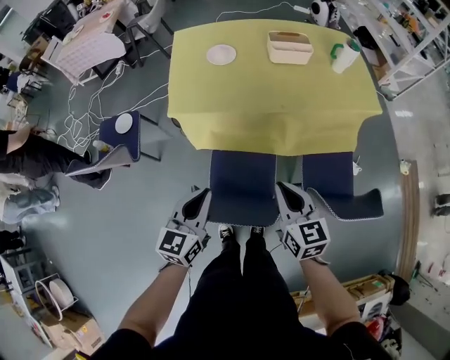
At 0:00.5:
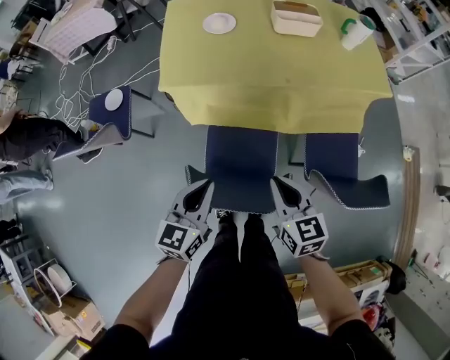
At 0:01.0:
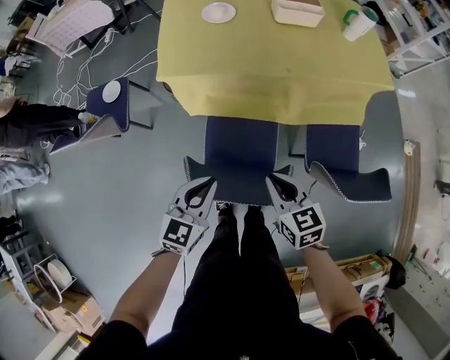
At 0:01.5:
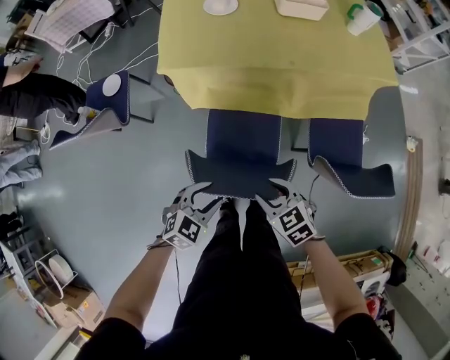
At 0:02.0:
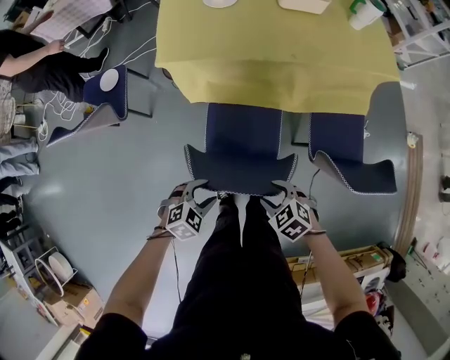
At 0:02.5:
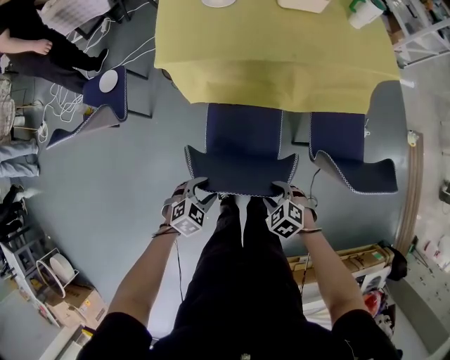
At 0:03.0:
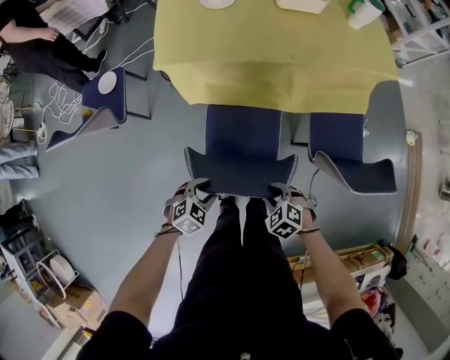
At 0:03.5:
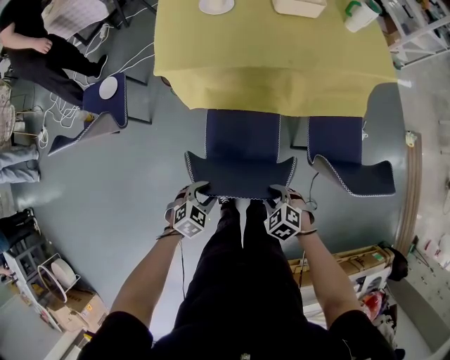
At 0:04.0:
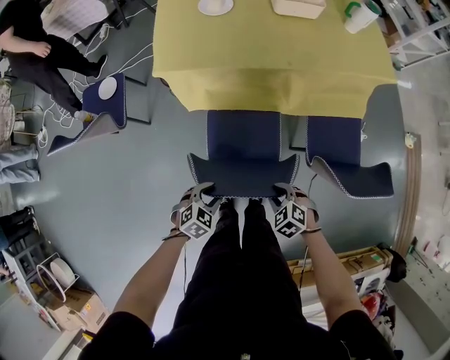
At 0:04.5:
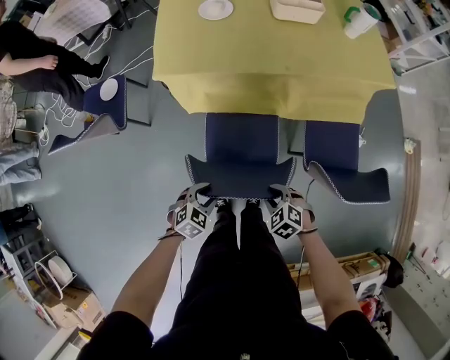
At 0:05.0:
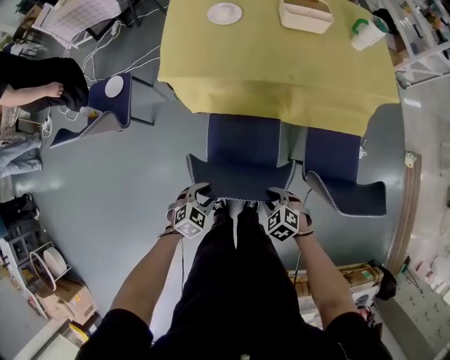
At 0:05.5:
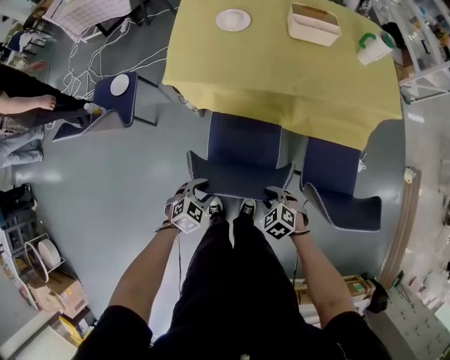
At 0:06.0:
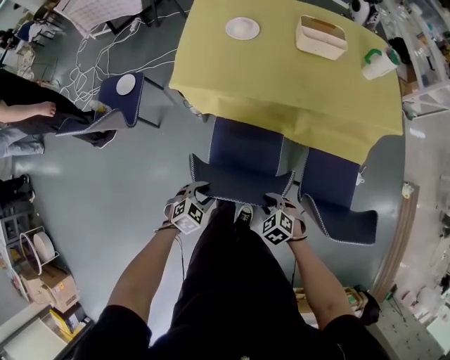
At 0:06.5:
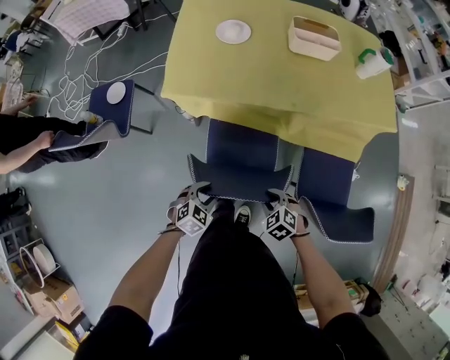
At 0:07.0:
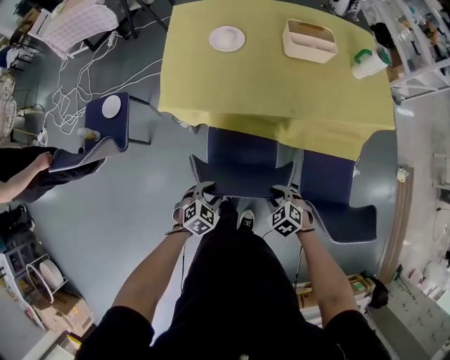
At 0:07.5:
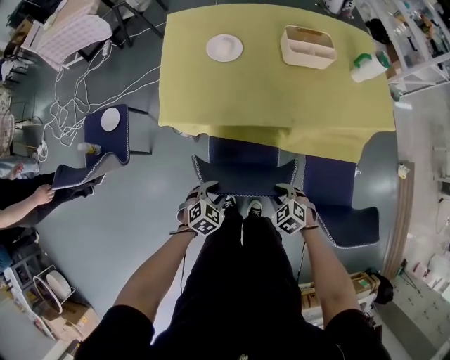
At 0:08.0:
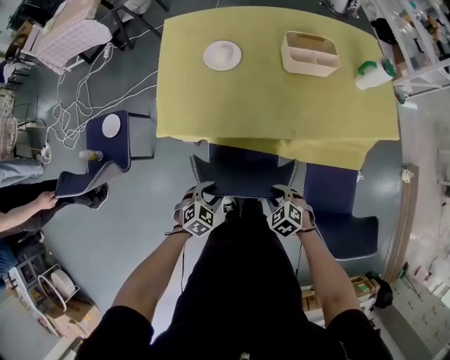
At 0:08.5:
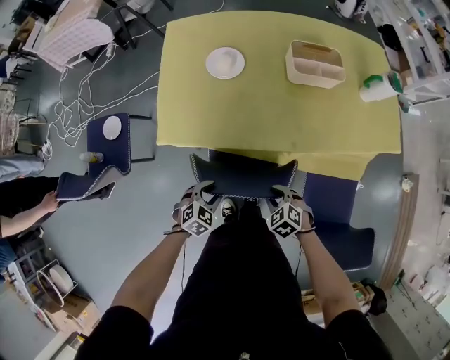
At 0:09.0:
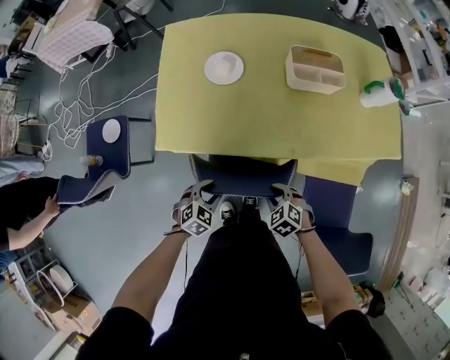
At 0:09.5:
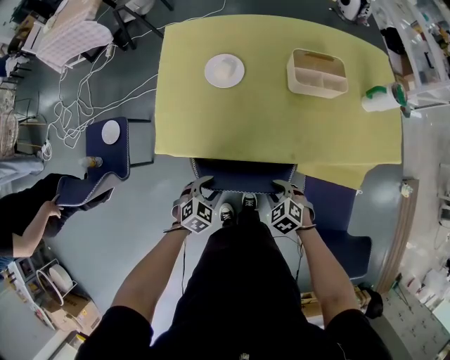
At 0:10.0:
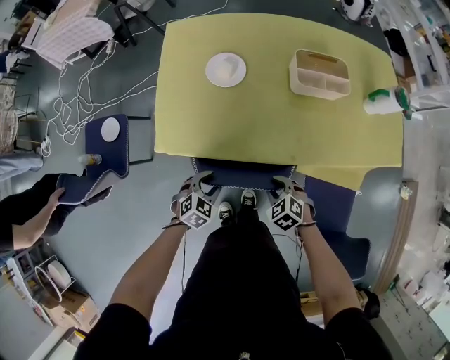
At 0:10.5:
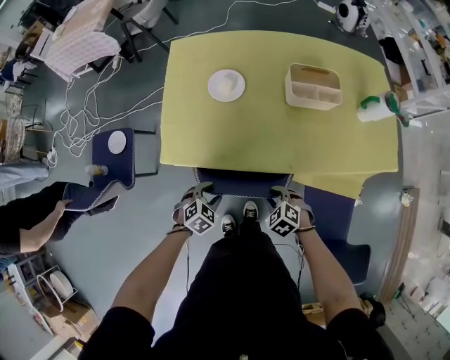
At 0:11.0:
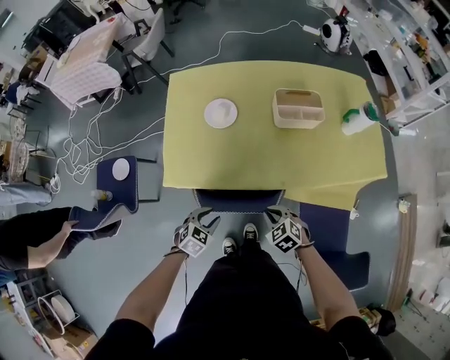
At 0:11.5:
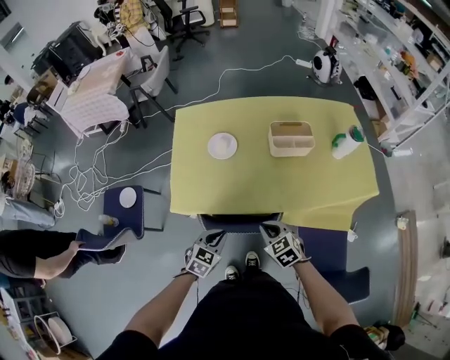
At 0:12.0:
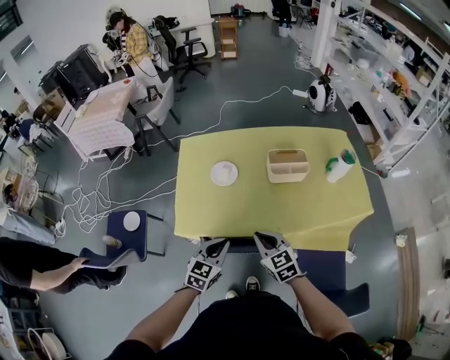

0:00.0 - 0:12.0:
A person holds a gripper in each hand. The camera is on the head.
0:00.0 - 0:02.0: Both grippers move downward, roughly 25 cm. The right gripper angles its fingers downward, by approximately 40 degrees, and opens up; the left gripper angles its fingers downward, by about 40 degrees, and opens.
0:02.0 - 0:04.0: The right gripper moves approximately 5 cm.
0:04.0 - 0:06.0: The two grippers go roughly 5 cm forward.
0:06.0 - 0:08.0: Both grippers travel together forward, about 20 cm.
0:08.0 - 0:10.0: The two grippers go some 15 cm forward.
0:10.0 - 0:12.0: Both grippers travel together upward, about 25 cm. The right gripper tilts its fingers approximately 40 degrees upward, and closes. Meanwhile the left gripper swivels approximately 30 degrees, and closes up.

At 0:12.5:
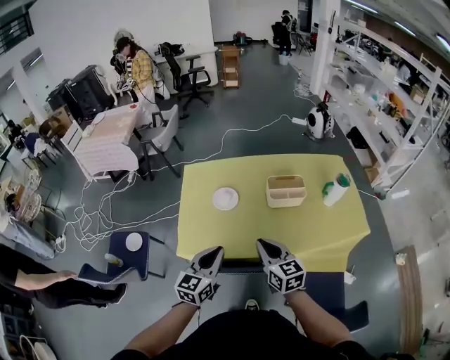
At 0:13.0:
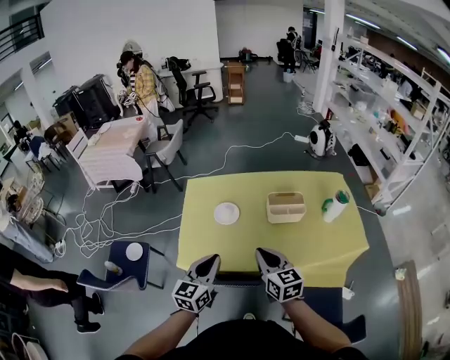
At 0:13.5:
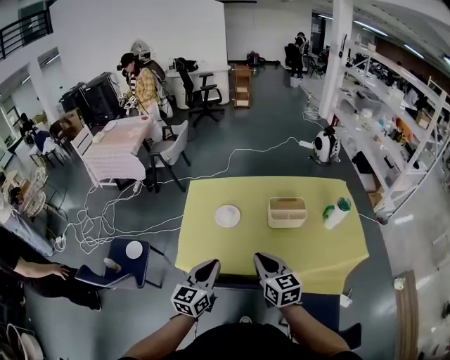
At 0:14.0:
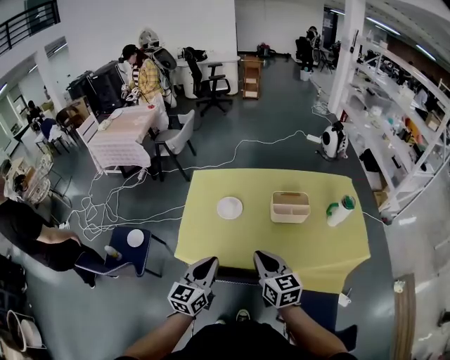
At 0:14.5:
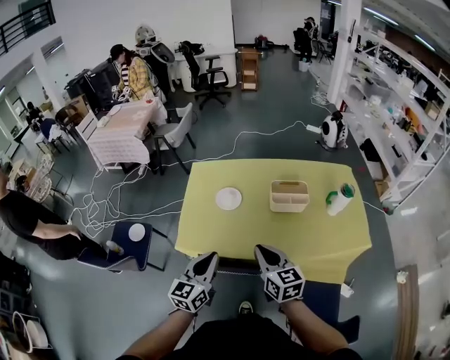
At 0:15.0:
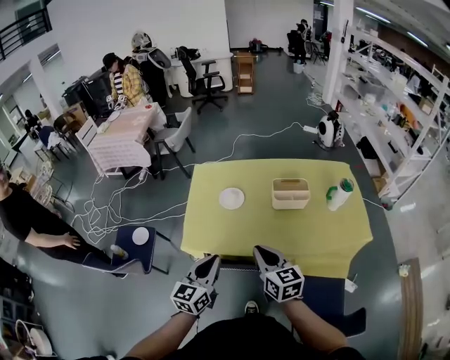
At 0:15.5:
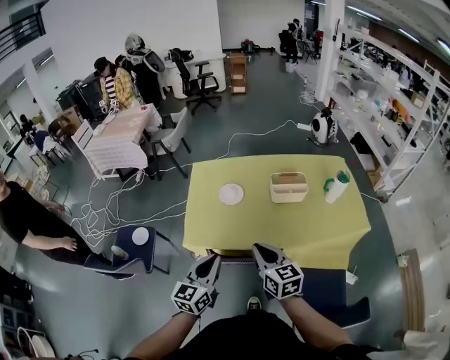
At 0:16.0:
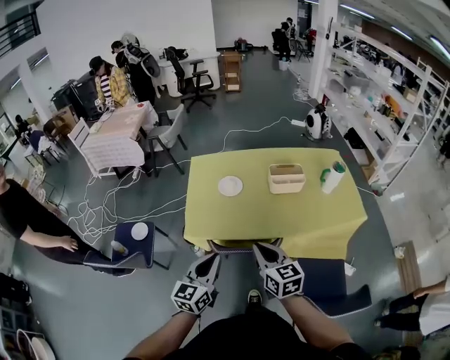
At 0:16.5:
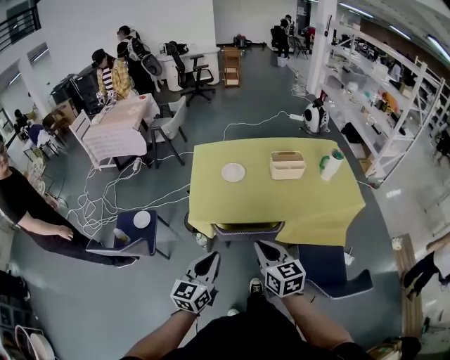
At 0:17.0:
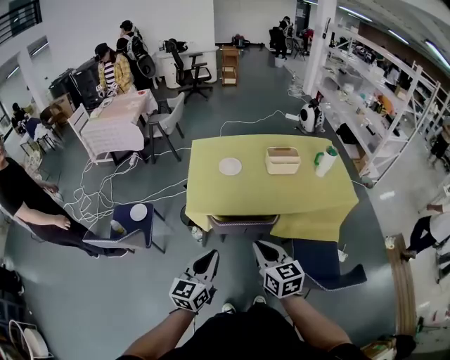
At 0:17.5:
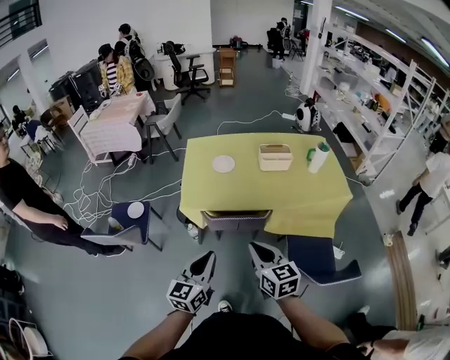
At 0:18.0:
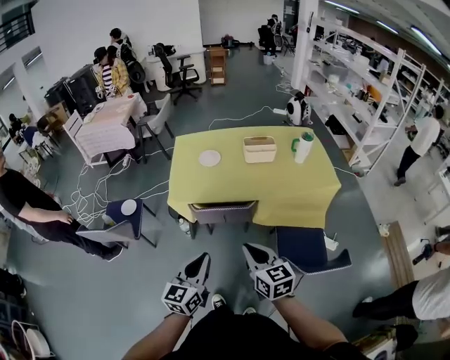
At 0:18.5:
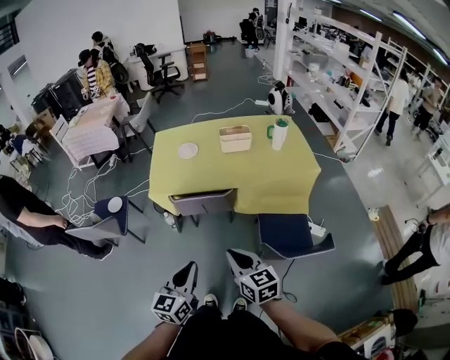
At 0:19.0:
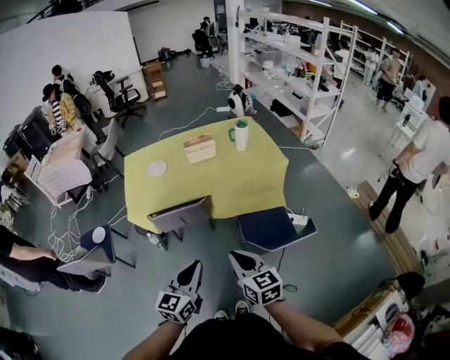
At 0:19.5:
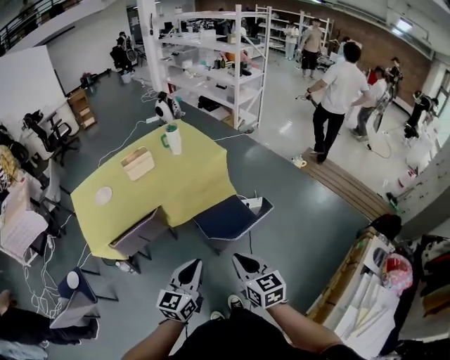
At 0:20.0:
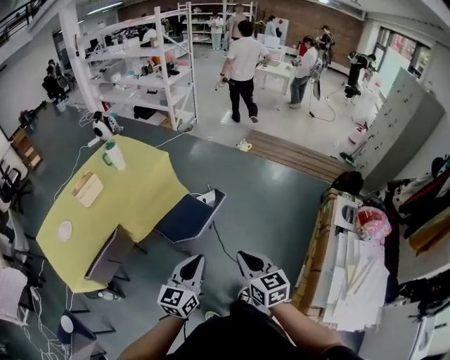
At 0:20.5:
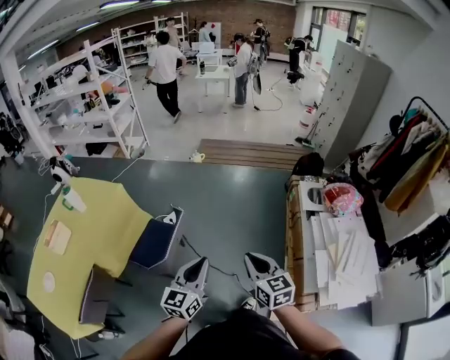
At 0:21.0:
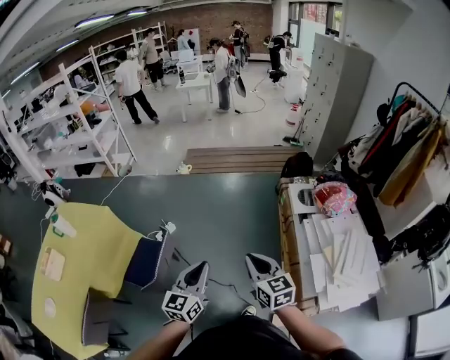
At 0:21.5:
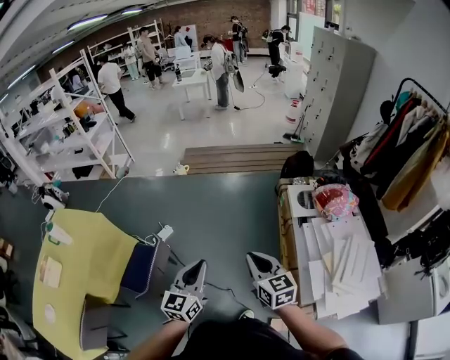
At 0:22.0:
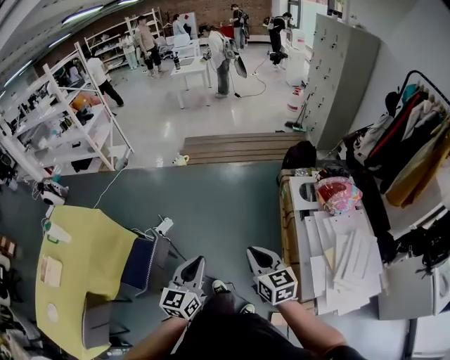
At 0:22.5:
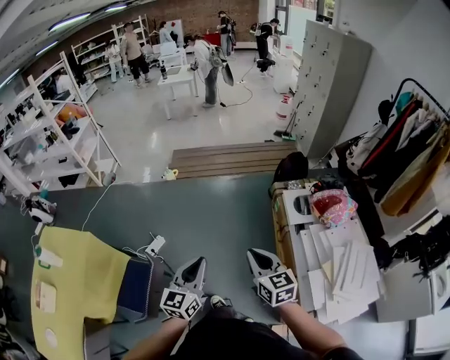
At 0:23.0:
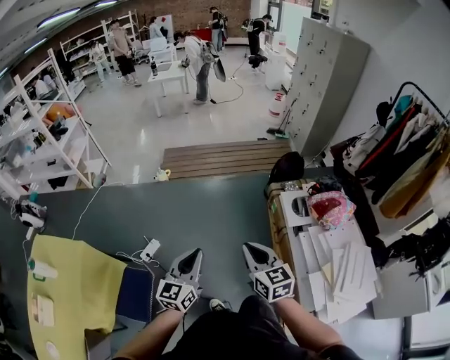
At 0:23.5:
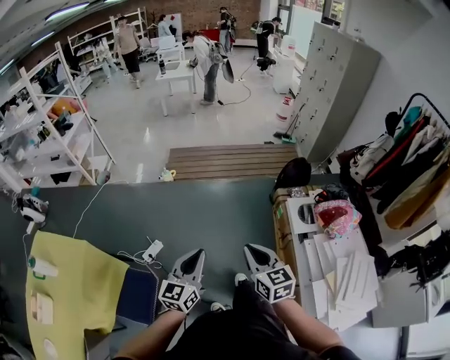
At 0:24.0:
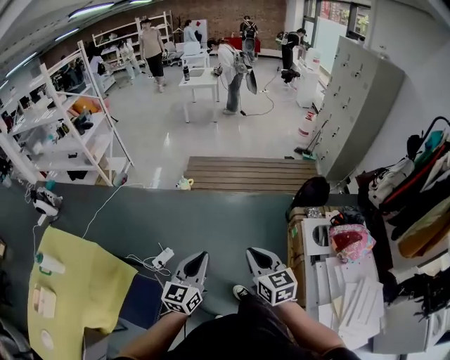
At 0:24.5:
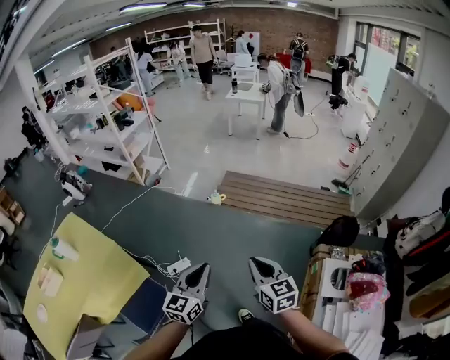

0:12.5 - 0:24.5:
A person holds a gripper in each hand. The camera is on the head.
0:12.5 - 0:14.5: The grippers make only small movements.
0:14.5 - 0:16.5: The grippers both shift backward and to the left by about 25 cm.
0:16.5 - 0:18.5: The grippers both shift backward and to the right by roughly 30 cm.
0:18.5 - 0:20.5: The two grippers travel together, roughly 40 cm. The left gripper rotates about 80 degrees, while the right gripper changes its angle by approximately 80 degrees.
0:20.5 - 0:22.5: The two grippers go about 30 cm forward and to the right.
0:22.5 - 0:24.5: The two grippers go roughly 30 cm forward and to the left. The right gripper changes its angle by roughly 20 degrees.

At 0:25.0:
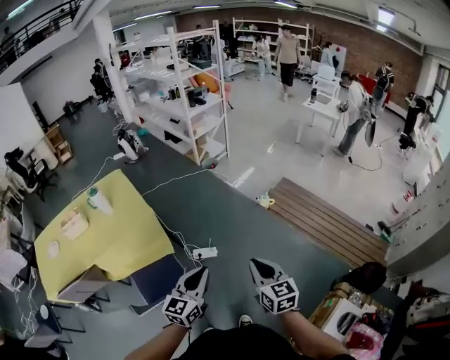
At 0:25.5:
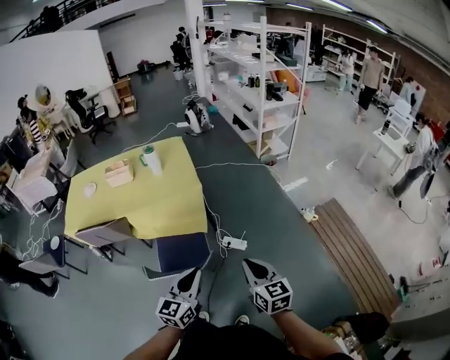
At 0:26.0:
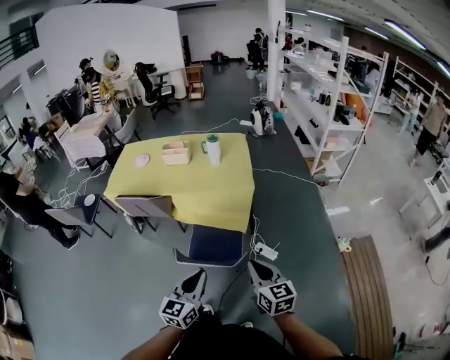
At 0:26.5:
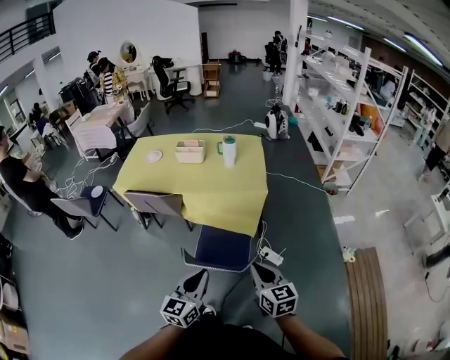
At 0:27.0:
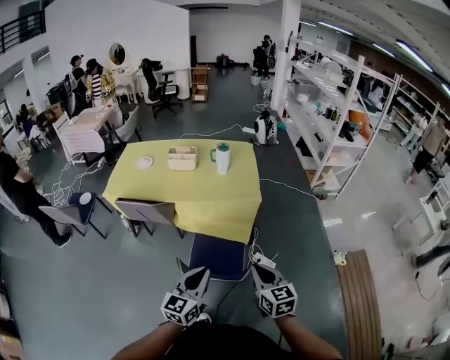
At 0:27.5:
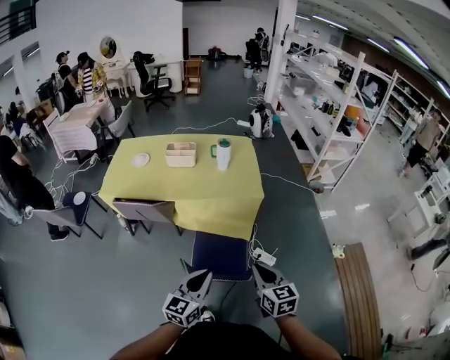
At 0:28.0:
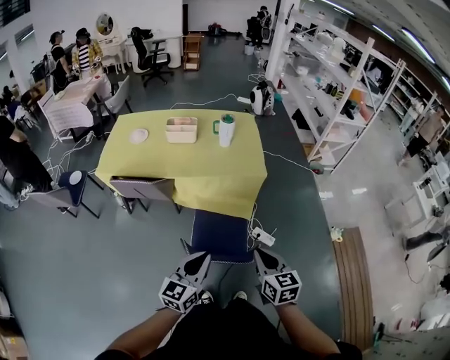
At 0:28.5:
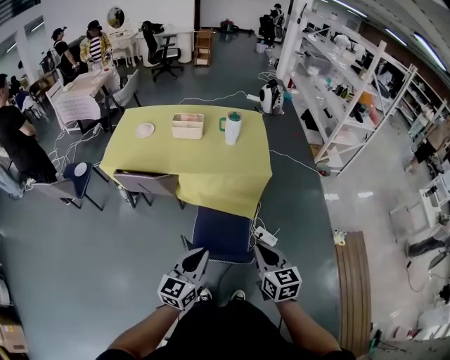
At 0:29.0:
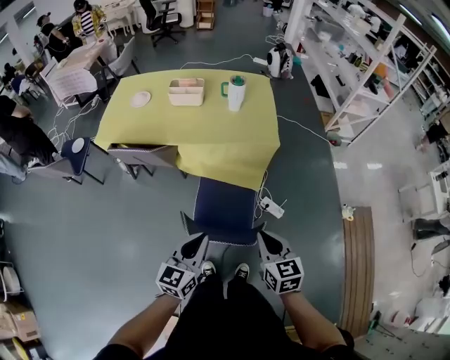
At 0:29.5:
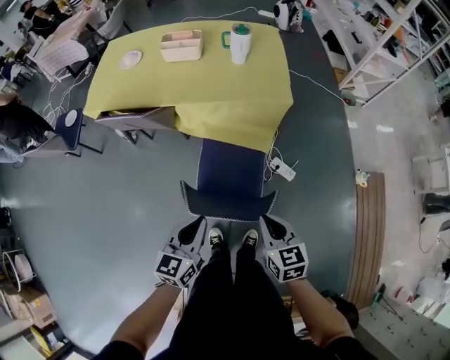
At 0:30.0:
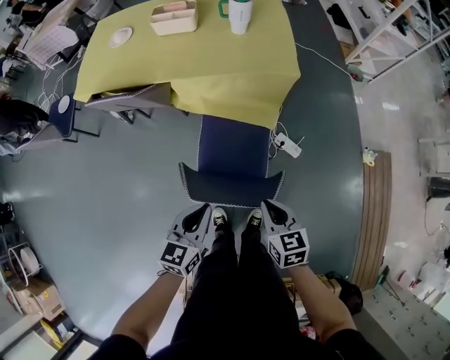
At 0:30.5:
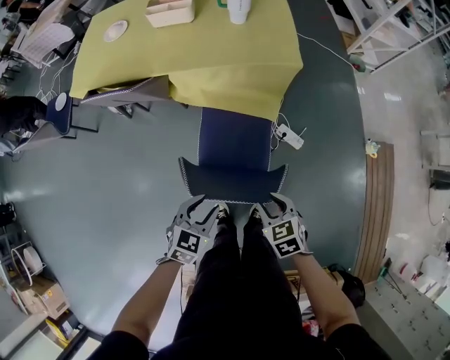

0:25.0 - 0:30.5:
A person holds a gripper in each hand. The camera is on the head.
0:25.0 - 0:27.0: The left gripper shifts by about 30 cm, and rotates roughly 40 degrees. The right gripper shifts by approximately 35 cm, and changes its angle by roughly 40 degrees.
0:27.0 - 0:28.5: Both grippers travel together to the left, some 5 cm.
0:28.5 - 0:30.5: The two grippers go roughly 25 cm downward. The left gripper angles its fingers downward, by approximately 40 degrees, and opens; the right gripper tilts its fingers some 30 degrees downward, and opens up.
